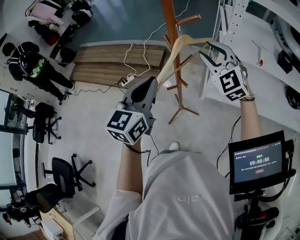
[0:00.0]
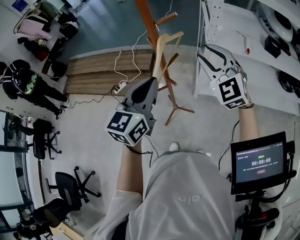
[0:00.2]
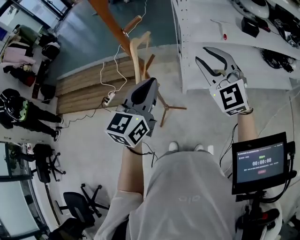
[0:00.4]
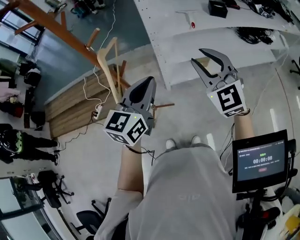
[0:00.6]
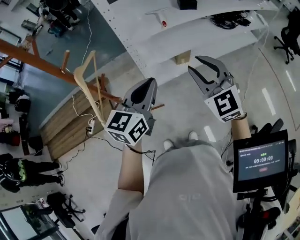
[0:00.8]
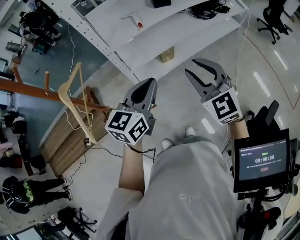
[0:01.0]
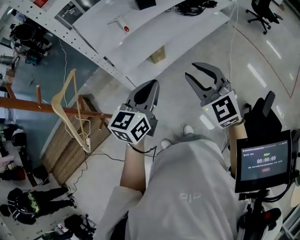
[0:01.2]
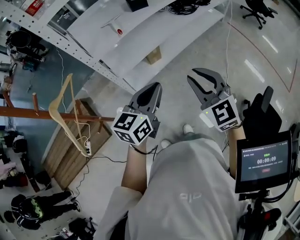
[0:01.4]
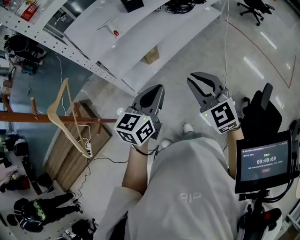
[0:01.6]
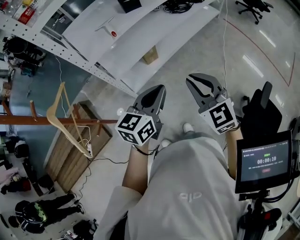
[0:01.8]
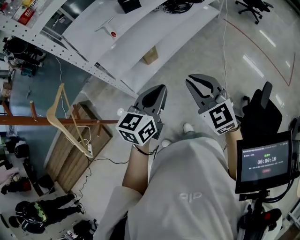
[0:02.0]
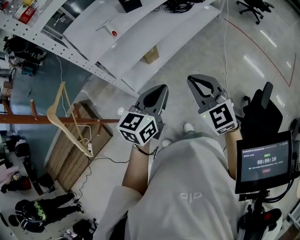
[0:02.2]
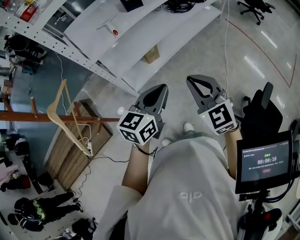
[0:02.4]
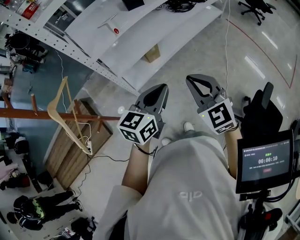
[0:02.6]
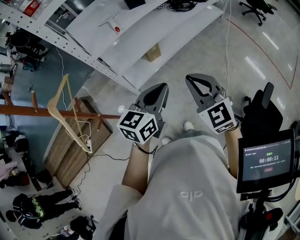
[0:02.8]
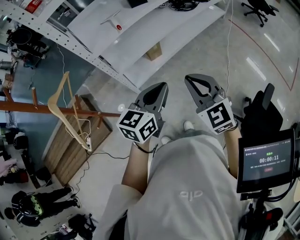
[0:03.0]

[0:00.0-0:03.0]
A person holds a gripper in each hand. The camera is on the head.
0:00.0 to 0:01.6: Both grippers are carried approximately 40 cm. The right gripper rotates some 60 degrees; the left gripper rotates roughly 60 degrees.
0:01.6 to 0:03.0: The grippers stay close to where they were, moving slightly.

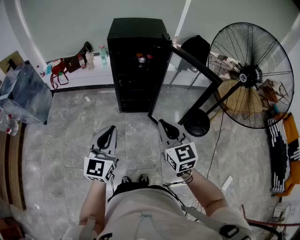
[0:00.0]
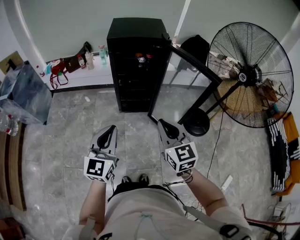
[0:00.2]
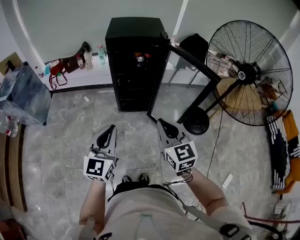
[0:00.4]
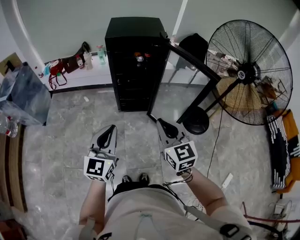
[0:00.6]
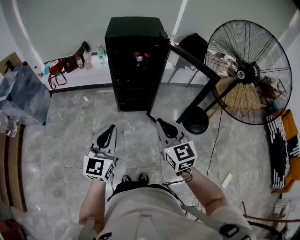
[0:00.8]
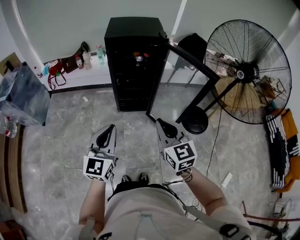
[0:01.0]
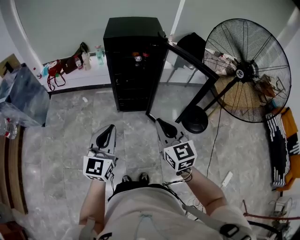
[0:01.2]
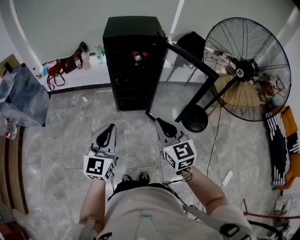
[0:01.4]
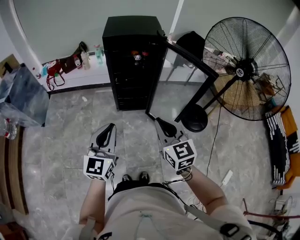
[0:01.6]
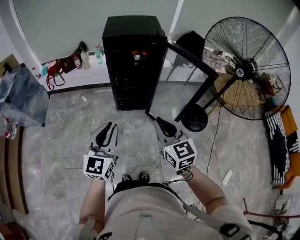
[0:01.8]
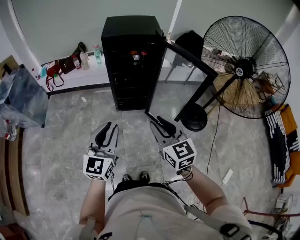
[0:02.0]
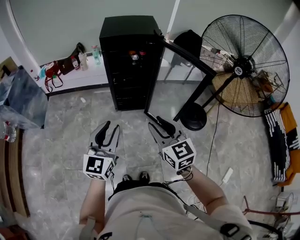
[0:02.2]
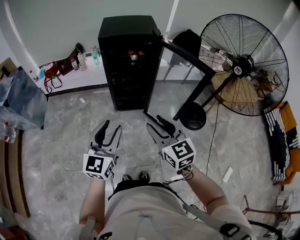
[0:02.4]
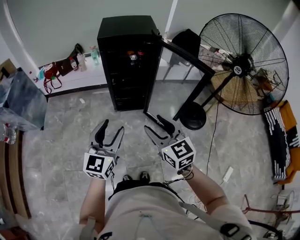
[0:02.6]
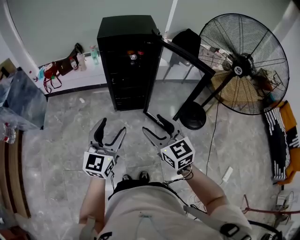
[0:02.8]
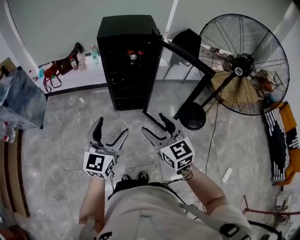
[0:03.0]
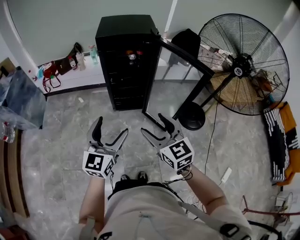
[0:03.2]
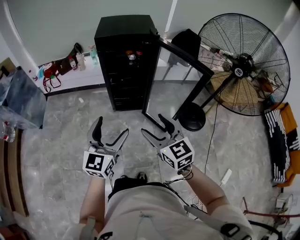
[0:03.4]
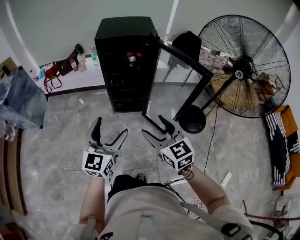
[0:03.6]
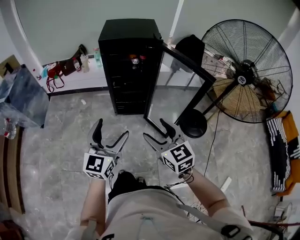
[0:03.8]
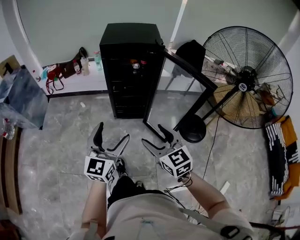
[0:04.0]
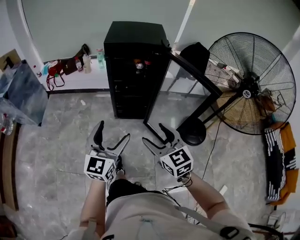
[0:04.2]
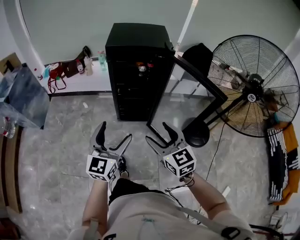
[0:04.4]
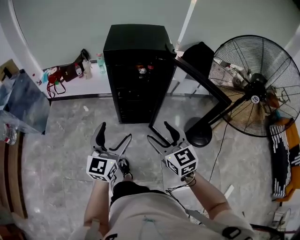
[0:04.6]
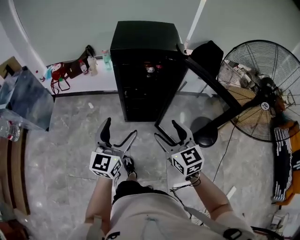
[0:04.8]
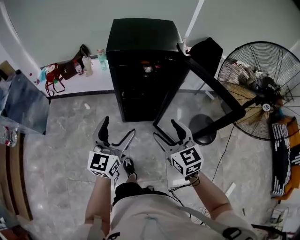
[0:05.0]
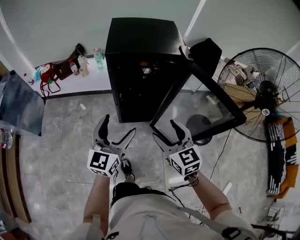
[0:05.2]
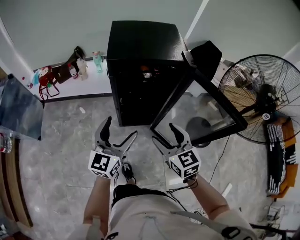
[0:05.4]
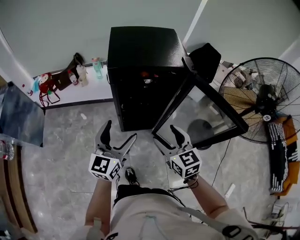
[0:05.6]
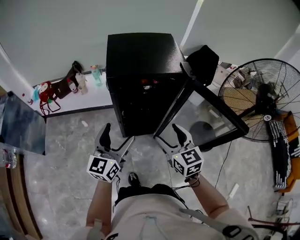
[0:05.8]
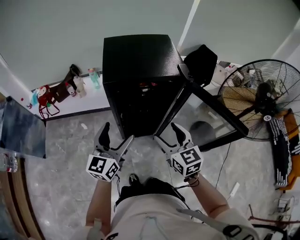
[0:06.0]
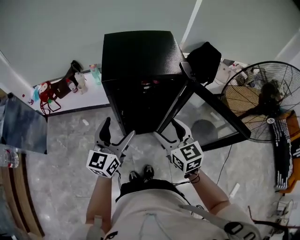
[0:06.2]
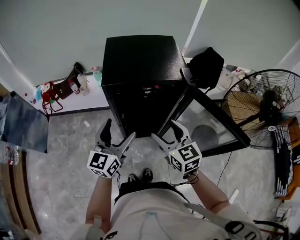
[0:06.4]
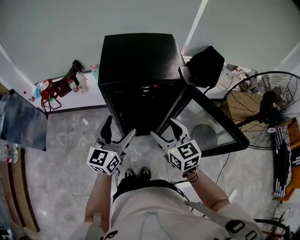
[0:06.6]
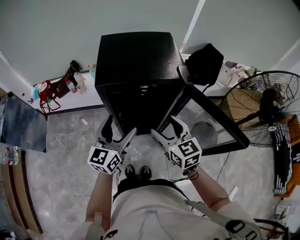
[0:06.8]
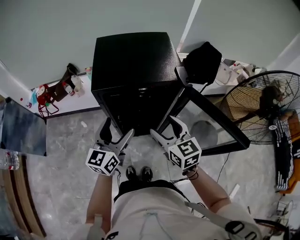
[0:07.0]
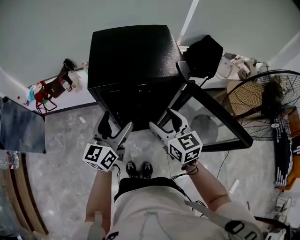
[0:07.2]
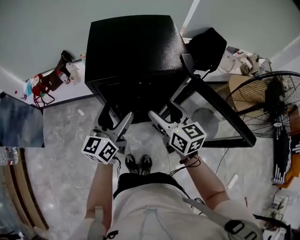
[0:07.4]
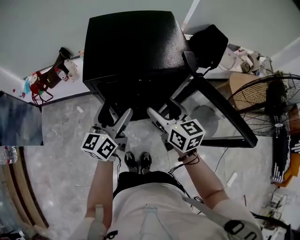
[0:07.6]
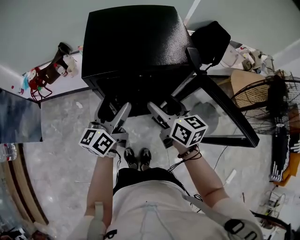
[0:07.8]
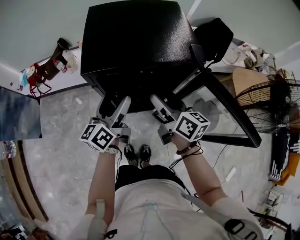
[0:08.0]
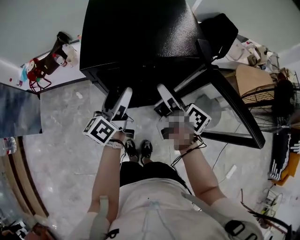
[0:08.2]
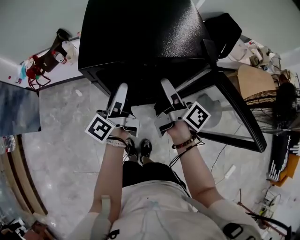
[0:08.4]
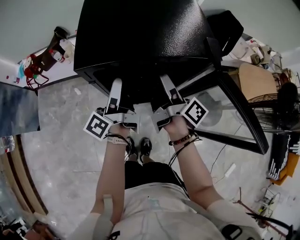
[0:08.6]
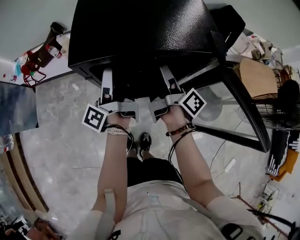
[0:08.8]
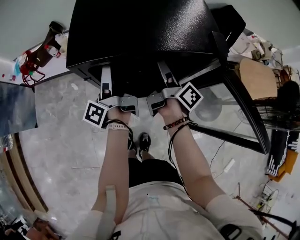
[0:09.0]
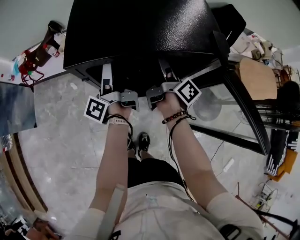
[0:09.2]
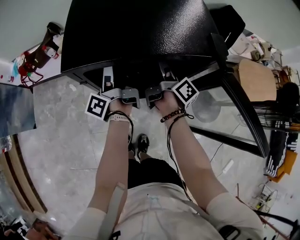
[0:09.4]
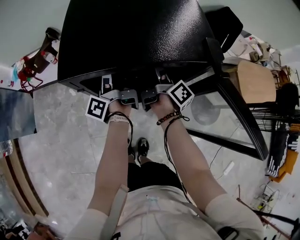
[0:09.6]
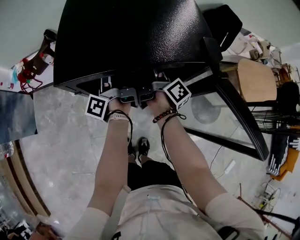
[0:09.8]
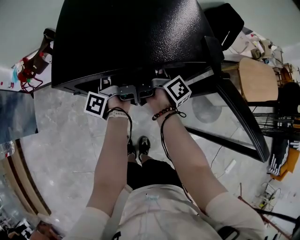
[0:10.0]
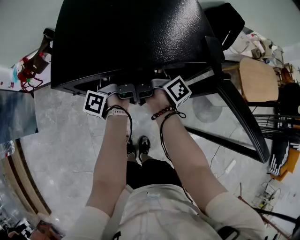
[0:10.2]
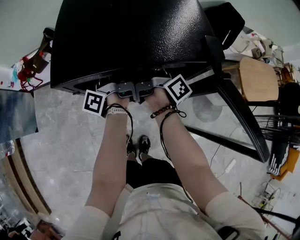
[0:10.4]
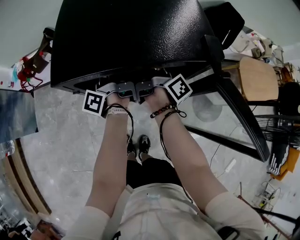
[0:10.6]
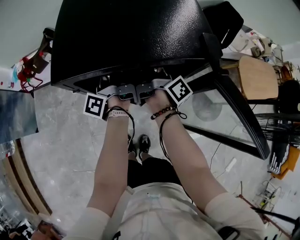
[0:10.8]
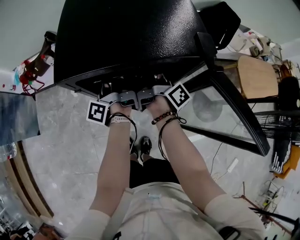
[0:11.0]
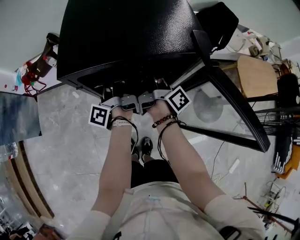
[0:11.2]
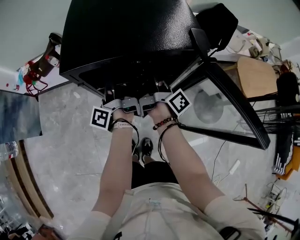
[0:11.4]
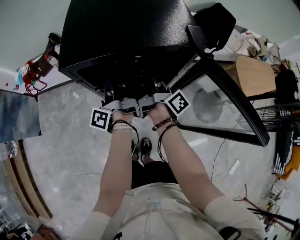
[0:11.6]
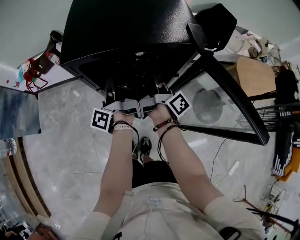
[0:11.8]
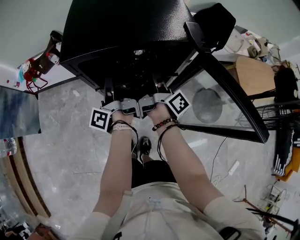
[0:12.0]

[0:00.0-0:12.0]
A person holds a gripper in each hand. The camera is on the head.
0:00.0 to 0:01.6: Neither gripper changes place.
0:01.6 to 0:03.0: The right gripper opens its fingers, while the left gripper opens.
0:03.0 to 0:04.4: Both grippers travel together forward, some 10 cm.
0:04.4 to 0:06.0: The grippers both shift forward by some 25 cm.
0:06.0 to 0:07.6: The two grippers go approximately 15 cm forward.
0:07.6 to 0:09.0: Both grippers move forward and downward, some 15 cm. The right gripper rolls clockwise, seen from behind, by approximately 60 degrees; the left gripper rolls counterclockwise, seen from behind, by about 60 degrees.
0:09.0 to 0:10.4: Both grippers travel together forward, about 5 cm. The left gripper closes its fingers, while the right gripper closes its fingers.
0:10.4 to 0:12.0: Both grippers move backward, roughly 10 cm.

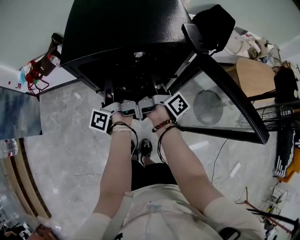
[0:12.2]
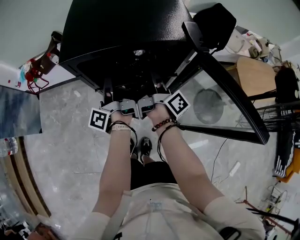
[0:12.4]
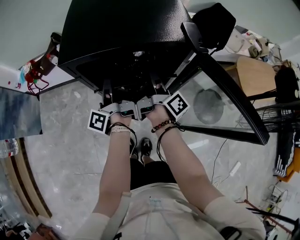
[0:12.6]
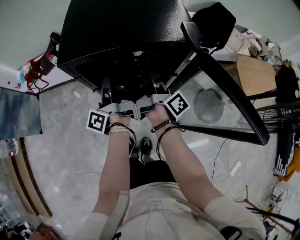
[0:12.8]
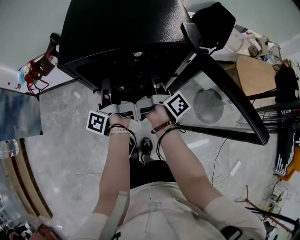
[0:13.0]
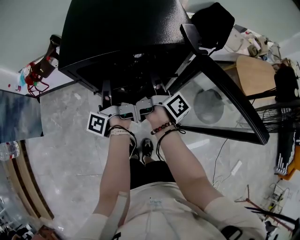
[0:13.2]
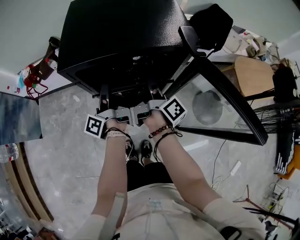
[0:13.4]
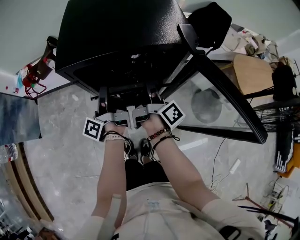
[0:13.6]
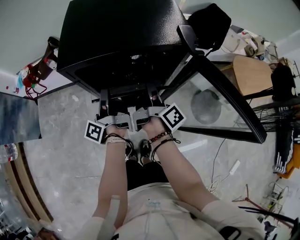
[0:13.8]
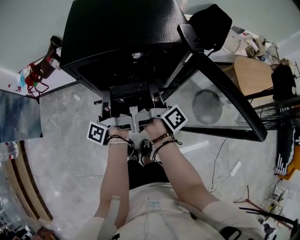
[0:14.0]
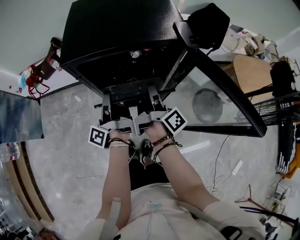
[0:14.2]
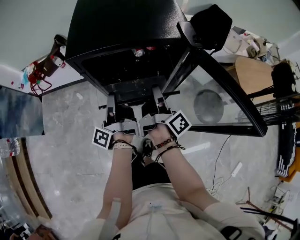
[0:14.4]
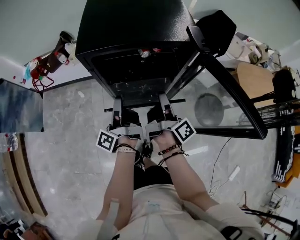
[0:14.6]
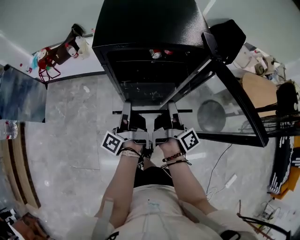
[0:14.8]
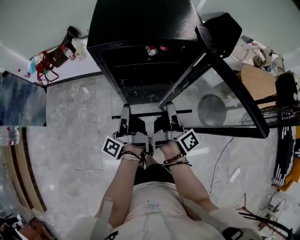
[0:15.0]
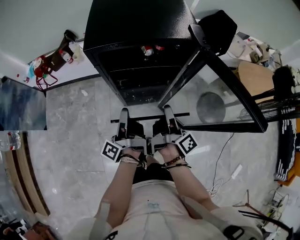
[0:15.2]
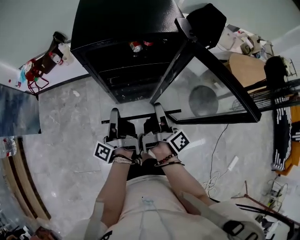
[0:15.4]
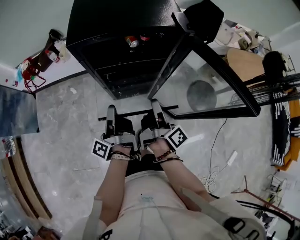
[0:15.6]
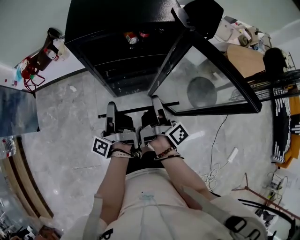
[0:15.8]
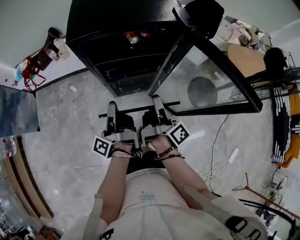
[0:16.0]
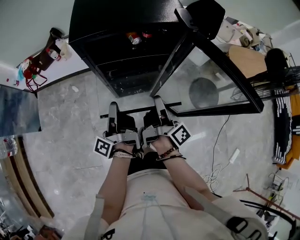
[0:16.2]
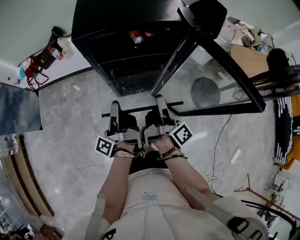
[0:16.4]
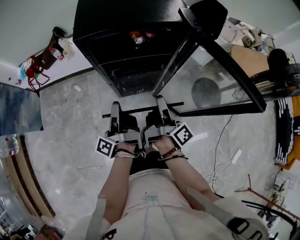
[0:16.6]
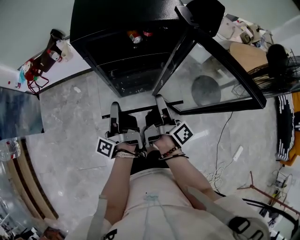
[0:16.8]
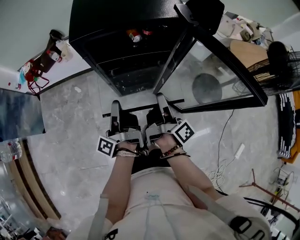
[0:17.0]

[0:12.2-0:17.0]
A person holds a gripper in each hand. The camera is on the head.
0:12.2 to 0:13.8: There are only small adjustments of the grippers.
0:13.8 to 0:15.4: Both grippers travel together backward, about 15 cm.
0:15.4 to 0:17.0: Both grippers stay put.

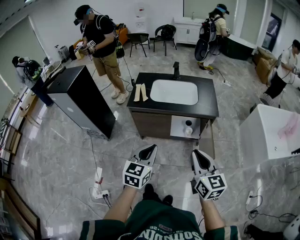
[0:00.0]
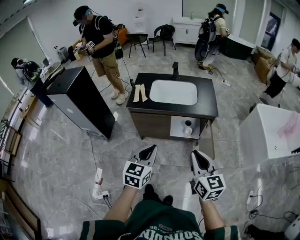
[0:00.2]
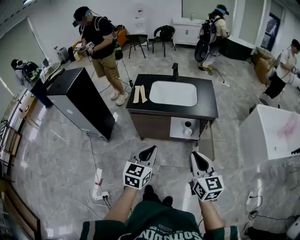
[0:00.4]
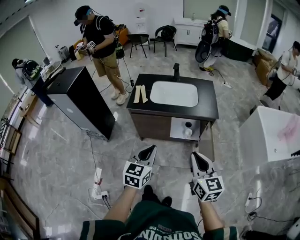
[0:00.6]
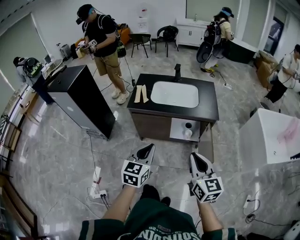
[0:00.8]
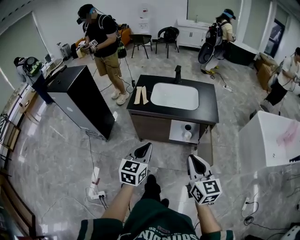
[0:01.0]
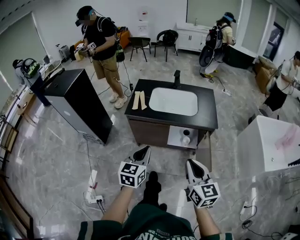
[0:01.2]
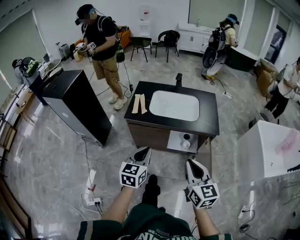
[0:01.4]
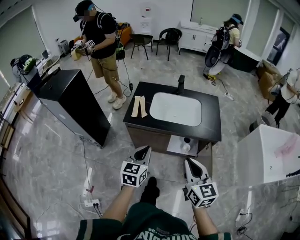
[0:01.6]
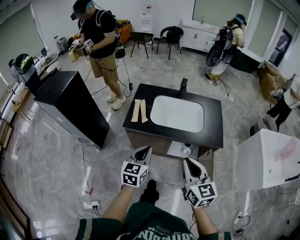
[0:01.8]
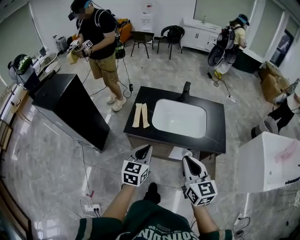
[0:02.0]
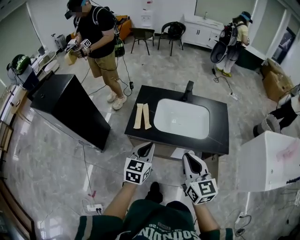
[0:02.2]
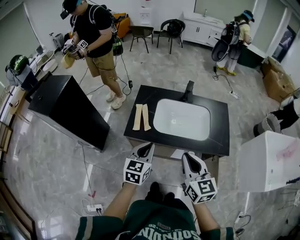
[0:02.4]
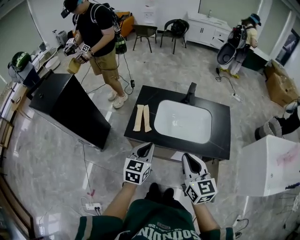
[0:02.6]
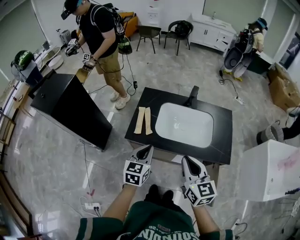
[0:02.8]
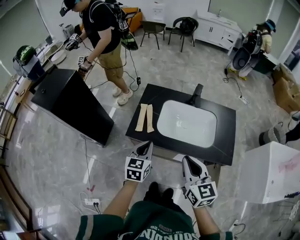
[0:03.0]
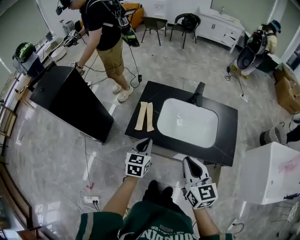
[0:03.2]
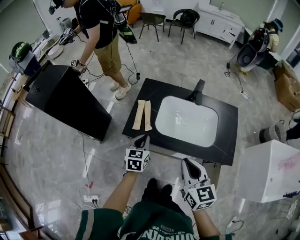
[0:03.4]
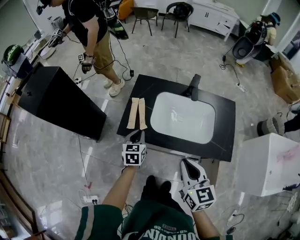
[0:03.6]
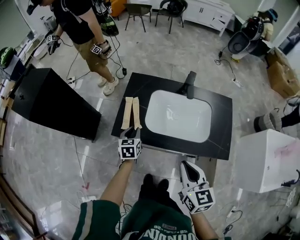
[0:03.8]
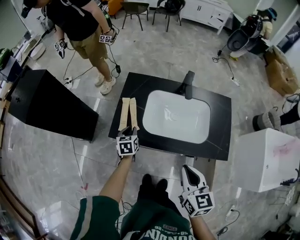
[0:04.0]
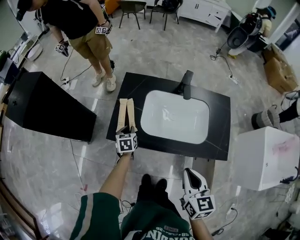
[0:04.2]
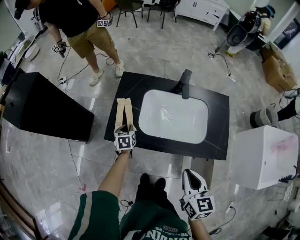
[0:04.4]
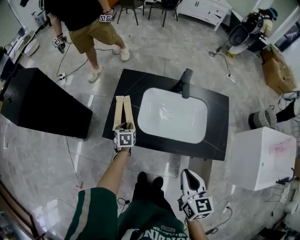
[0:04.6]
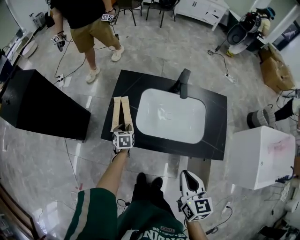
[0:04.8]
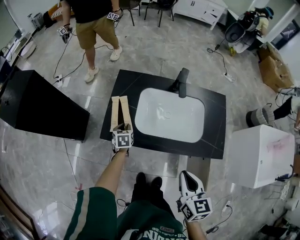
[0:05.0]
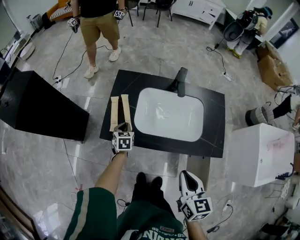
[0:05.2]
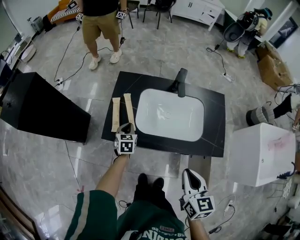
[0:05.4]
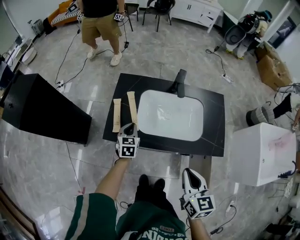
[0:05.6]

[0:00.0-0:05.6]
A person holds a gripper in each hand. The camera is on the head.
0:00.0 to 0:01.4: The two grippers go some 10 cm forward.
0:01.4 to 0:02.8: The grippers both shift forward by roughly 30 cm.
0:02.8 to 0:04.2: The left gripper heads downward and forward, covering some 30 cm, and changes its angle by approximately 30 degrees. The right gripper heads downward and to the right, covering about 10 cm.
0:04.2 to 0:05.6: The left gripper heads to the right, covering roughly 5 cm.
